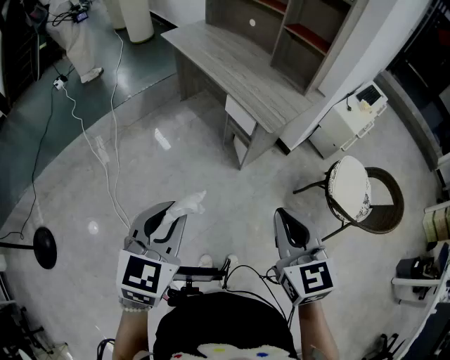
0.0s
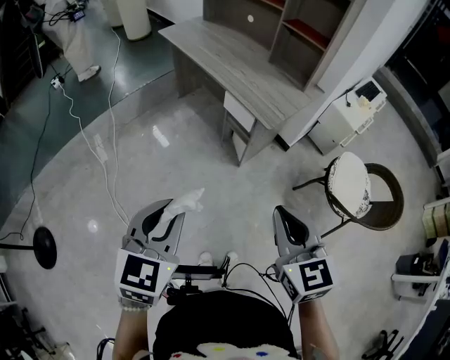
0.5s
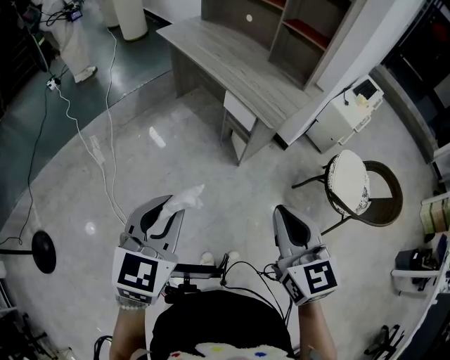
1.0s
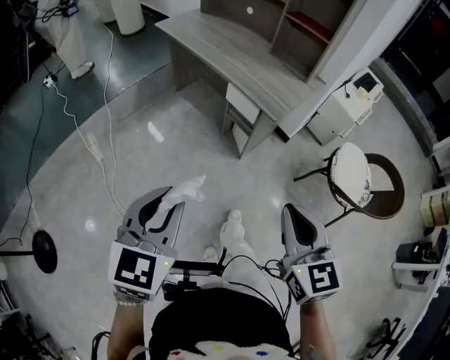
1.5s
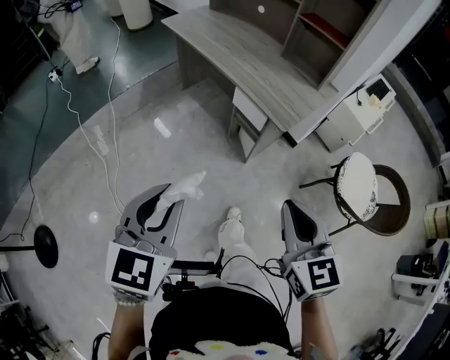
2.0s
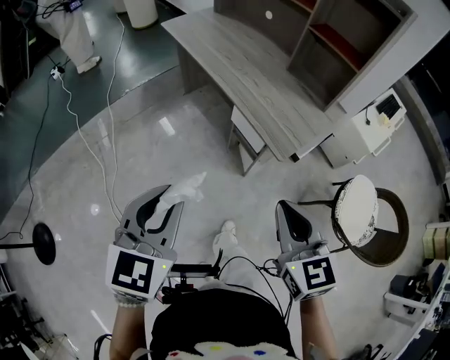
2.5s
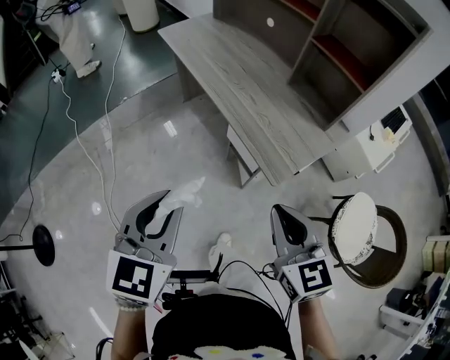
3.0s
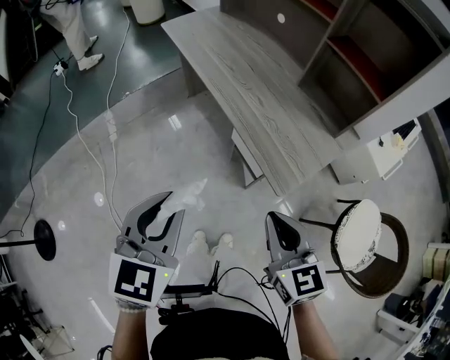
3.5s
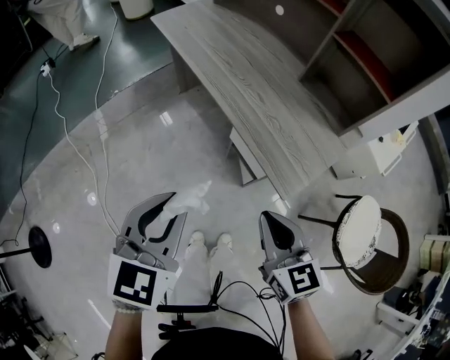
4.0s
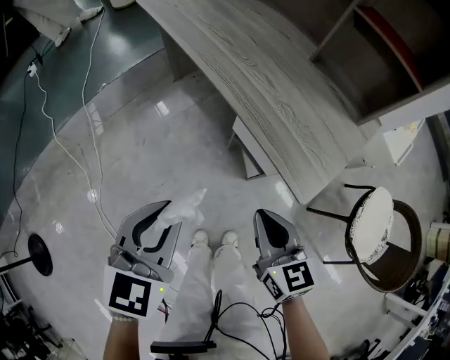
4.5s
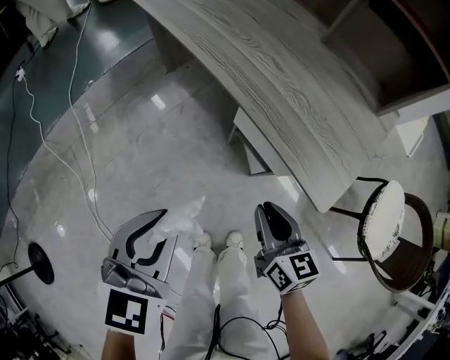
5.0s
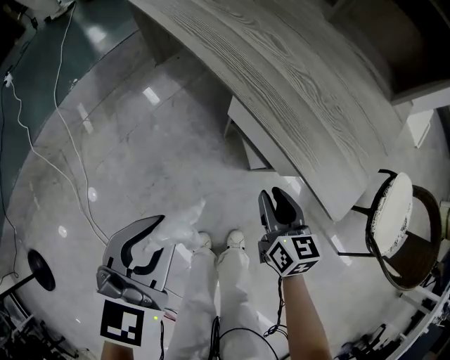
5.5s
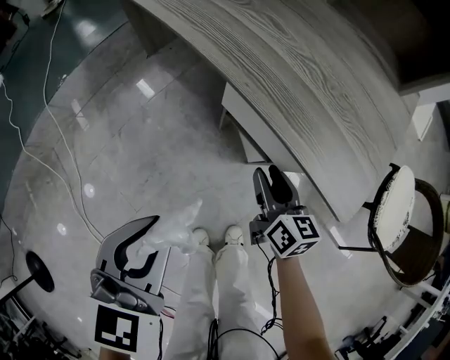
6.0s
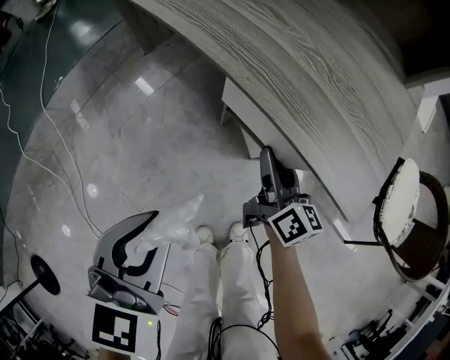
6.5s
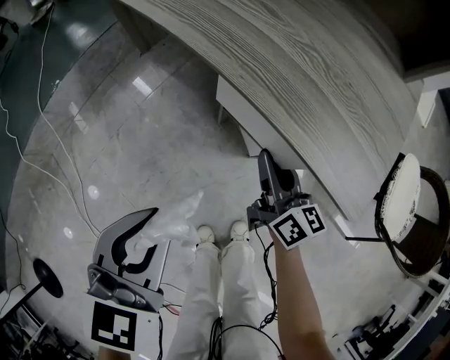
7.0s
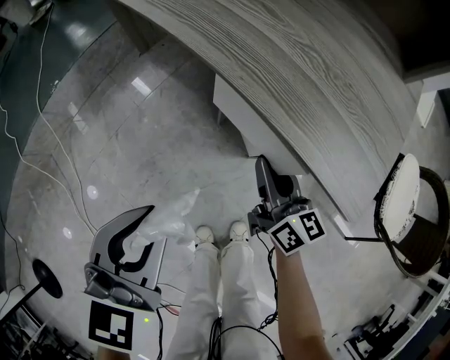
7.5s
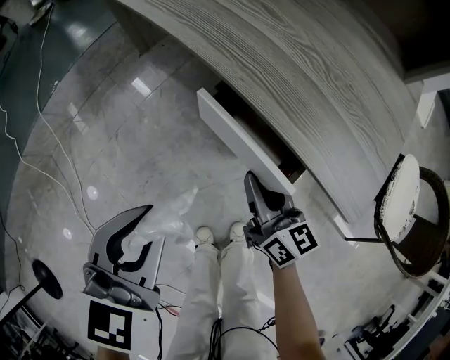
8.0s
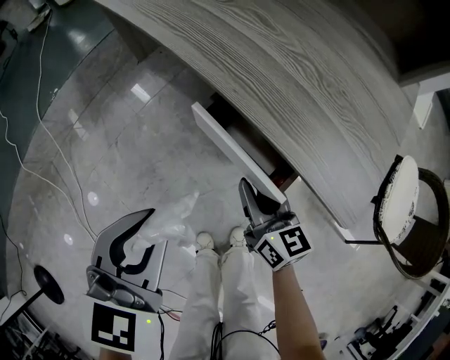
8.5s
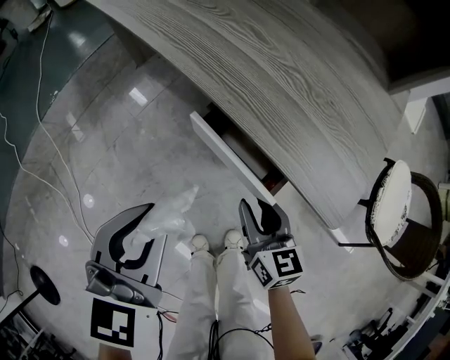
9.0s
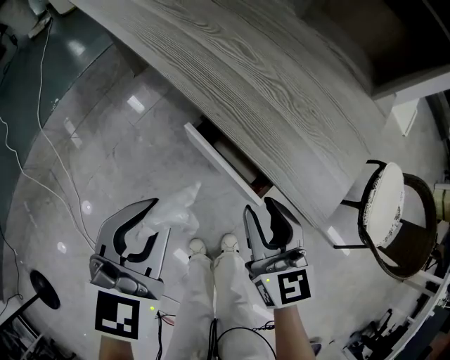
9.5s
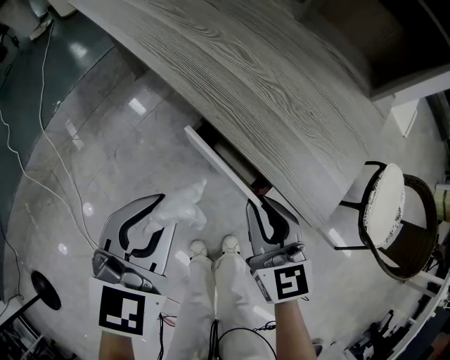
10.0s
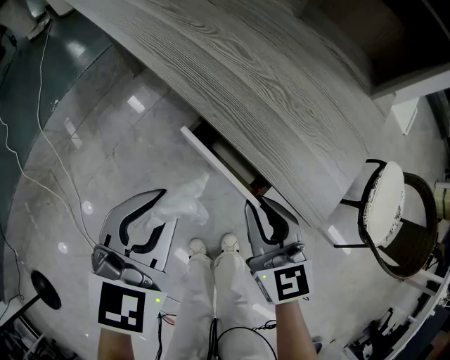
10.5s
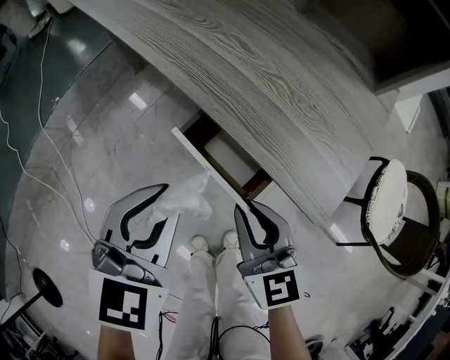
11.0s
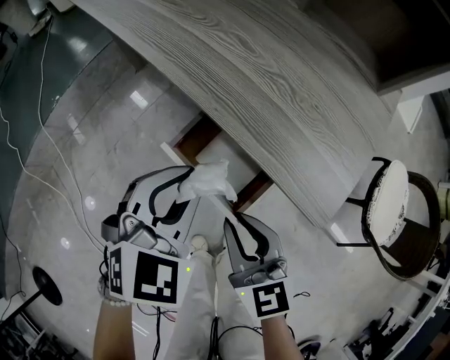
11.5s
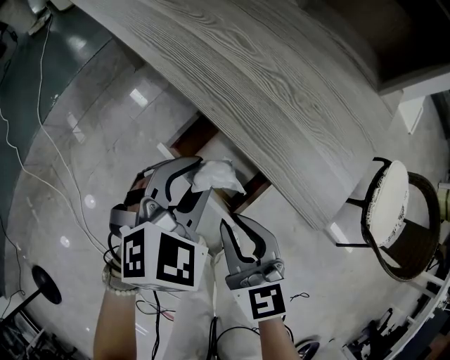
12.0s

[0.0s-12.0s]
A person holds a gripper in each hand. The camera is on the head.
0.0s to 2.0s: The grippers both shift forward by roughly 5 cm.
2.0s to 4.0s: The left gripper heads forward, covering about 25 cm. Meanwhile the right gripper is displaced forward and downward by roughly 30 cm.
4.0s to 6.0s: The two grippers go some 30 cm downward. The right gripper swivels some 30 degrees, and opens its fingers.
6.0s to 8.0s: The right gripper closes.
8.0s to 10.0s: The right gripper moves upward, roughly 10 cm, and swivels approximately 30 degrees. Meanwhile the left gripper is displaced upward by roughly 5 cm.
10.0s to 12.0s: The left gripper heads downward and to the right, covering roughly 10 cm, and changes its angle by roughly 20 degrees; the right gripper changes place by some 5 cm.

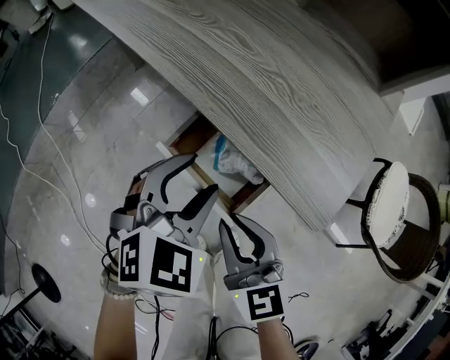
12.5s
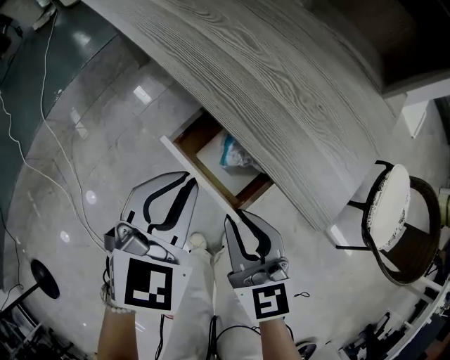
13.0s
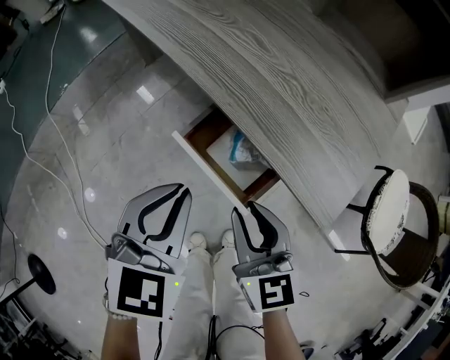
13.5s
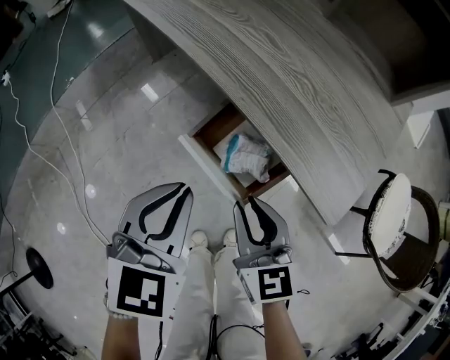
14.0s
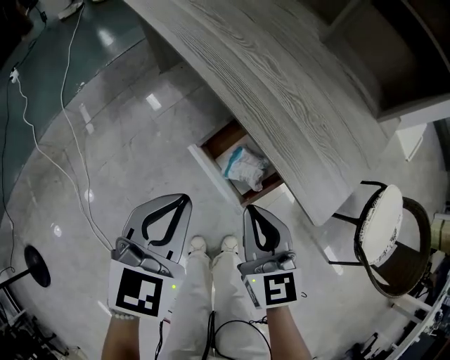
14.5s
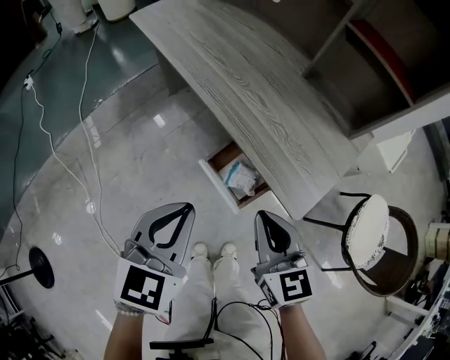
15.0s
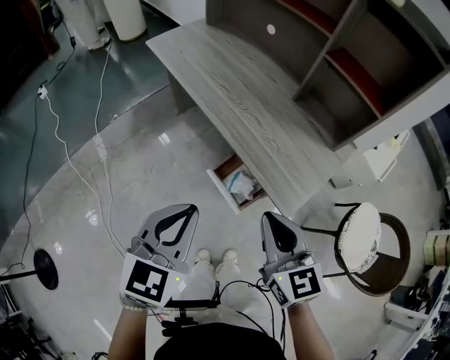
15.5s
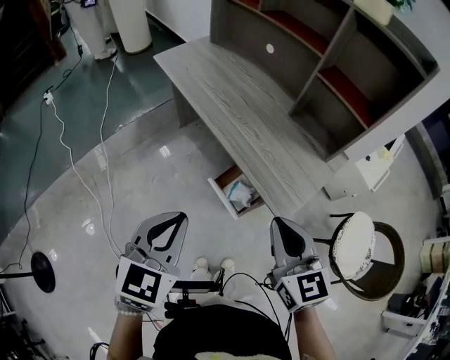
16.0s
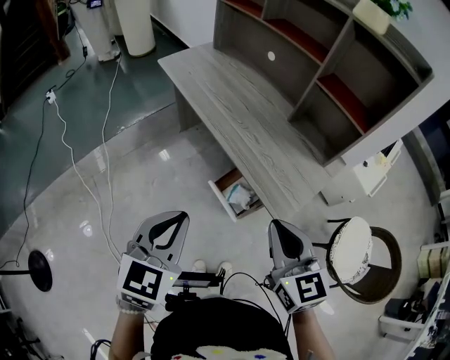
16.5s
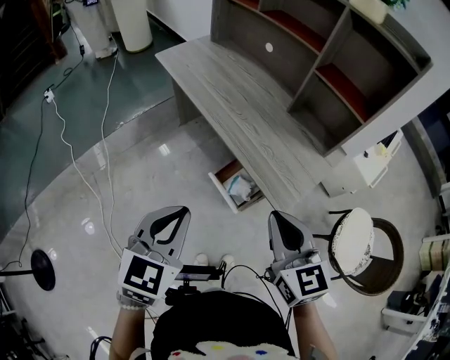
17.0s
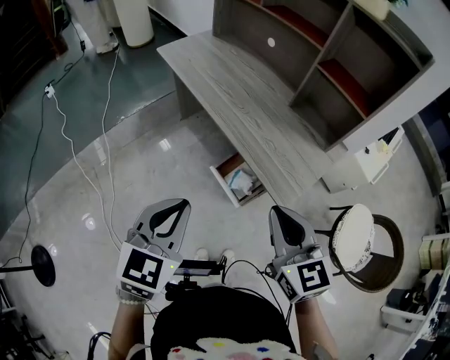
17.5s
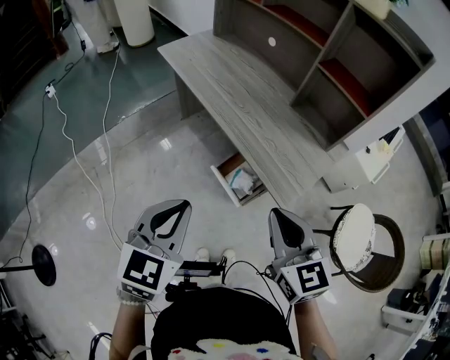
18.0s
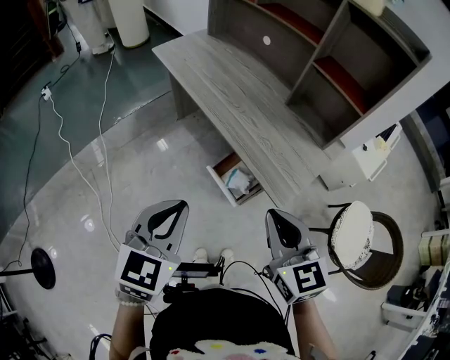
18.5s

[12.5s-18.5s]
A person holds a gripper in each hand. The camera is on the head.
12.5s to 14.5s: The left gripper is displaced upward, to the left and backward by about 15 cm, swivels roughly 30 degrees, and closes its fingers.
14.5s to 16.5s: Both grippers move upward, about 30 cm.
16.5s to 18.5s: The grippers stay close to where they were, moving slightly.

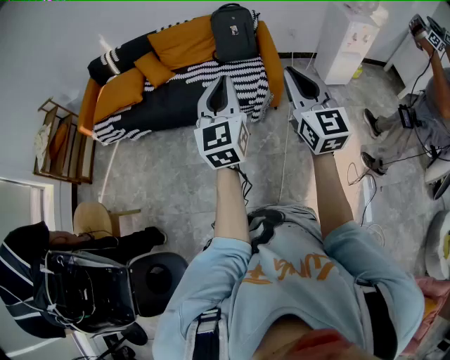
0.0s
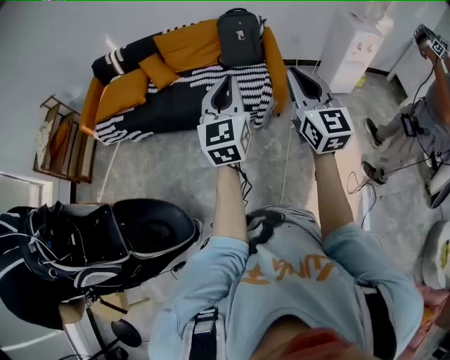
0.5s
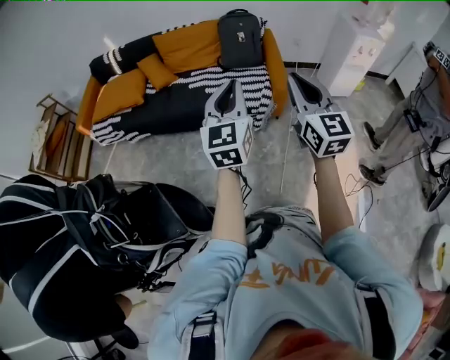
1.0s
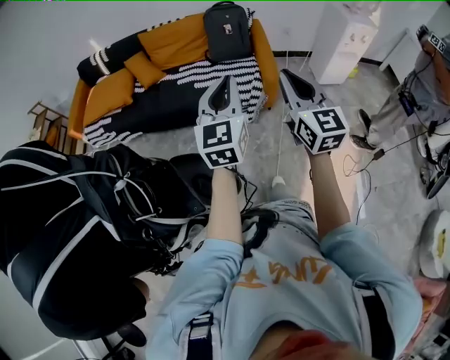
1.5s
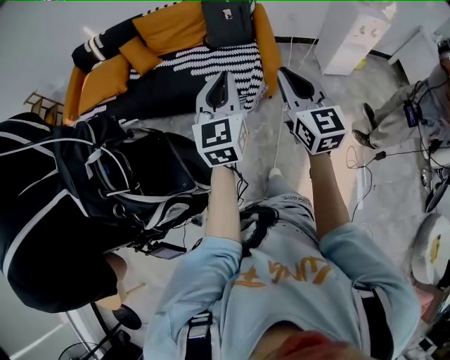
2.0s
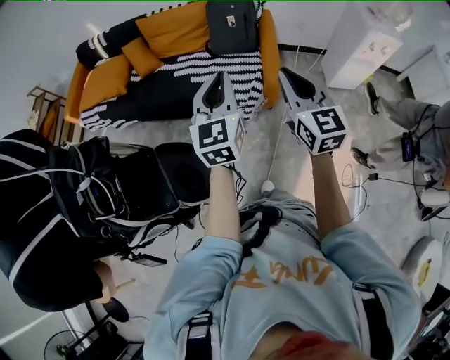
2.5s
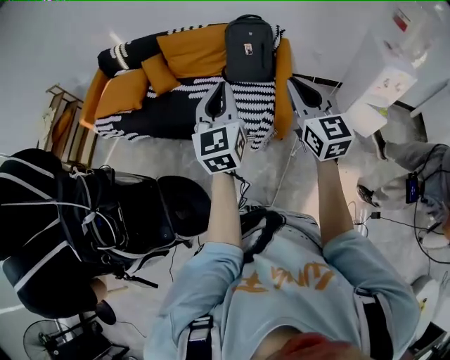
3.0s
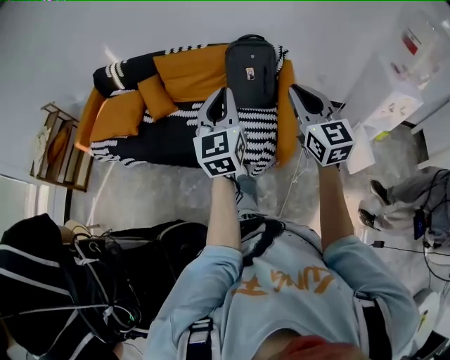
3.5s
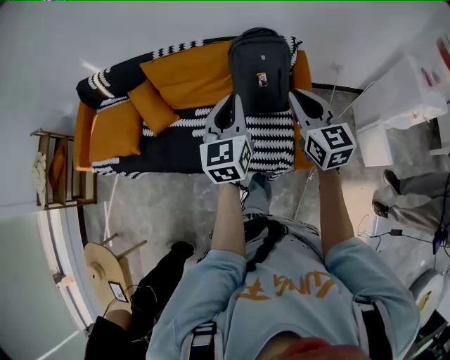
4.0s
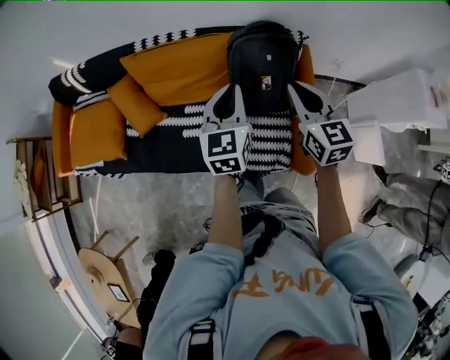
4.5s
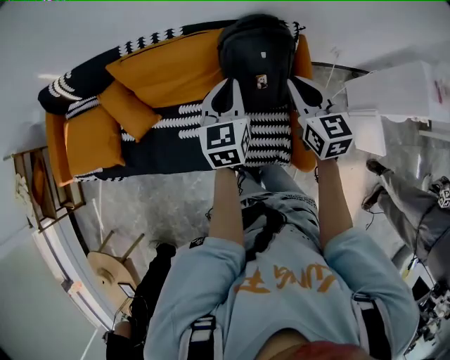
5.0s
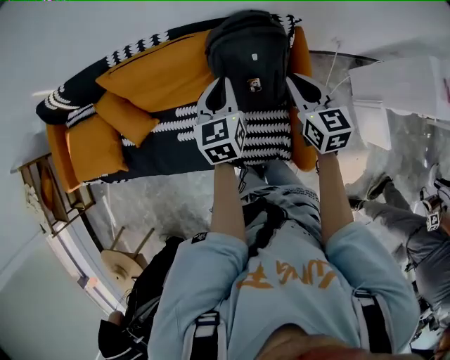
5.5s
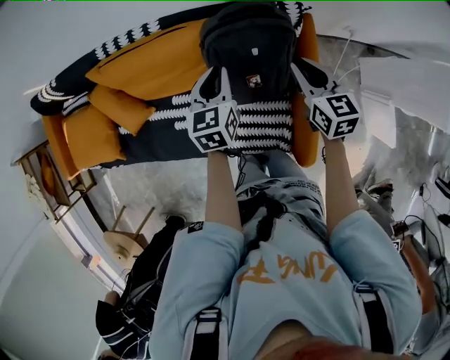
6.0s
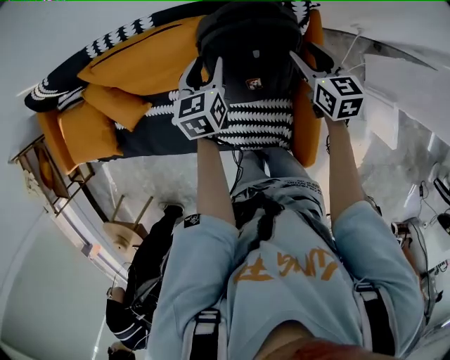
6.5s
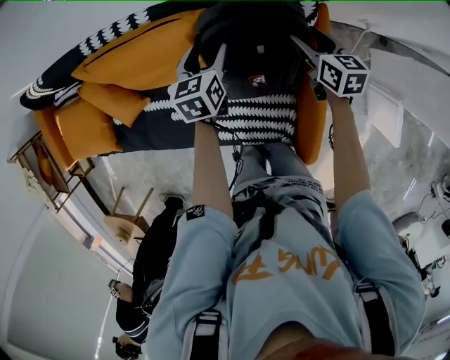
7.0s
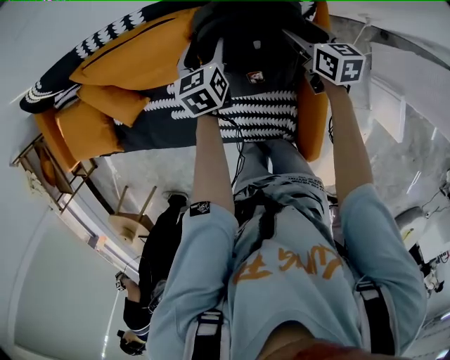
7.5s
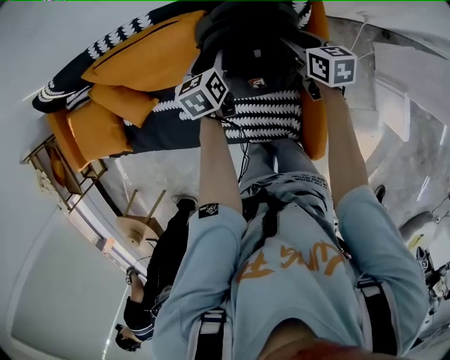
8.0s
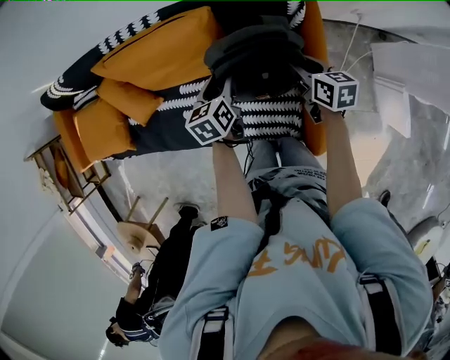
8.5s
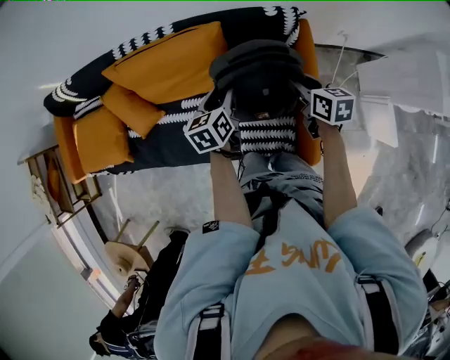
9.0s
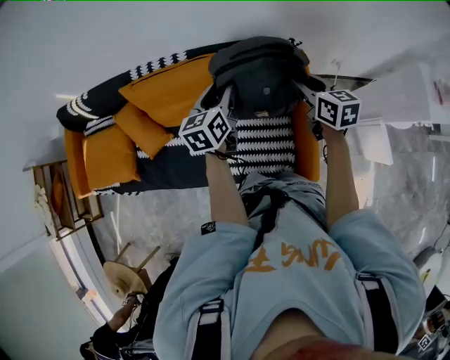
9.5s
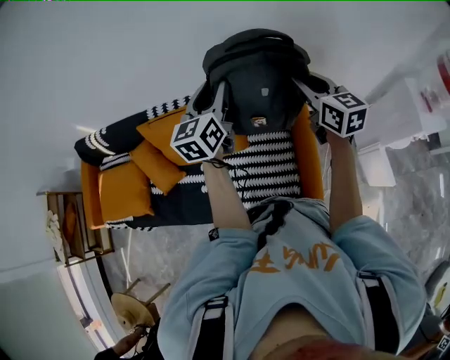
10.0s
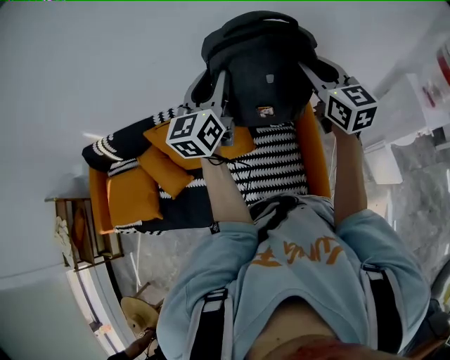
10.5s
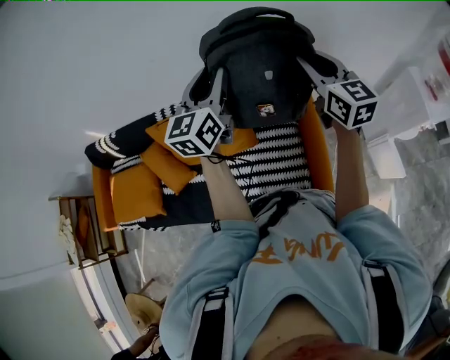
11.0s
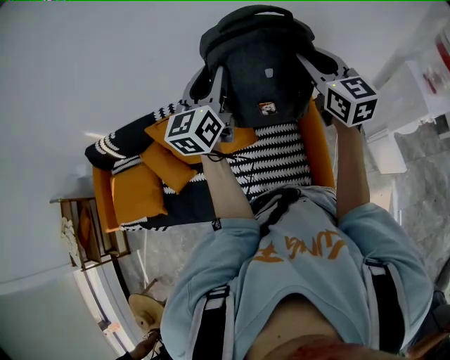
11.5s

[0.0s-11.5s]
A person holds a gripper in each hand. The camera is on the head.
0.0s to 2.0s: The left gripper moves forward, downward and to the right, about 15 cm; the right gripper is displaced forward and downward by approximately 10 cm.
2.0s to 4.0s: The two grippers travel together, forward, about 50 cm.
4.0s to 6.0s: The two grippers go about 35 cm forward and downward. The left gripper rotates some 30 degrees. The right gripper swivels about 20 degrees.
6.0s to 7.5s: The grippers both shift downward and forward by roughly 15 cm. The right gripper opens its fingers. The left gripper opens its fingers.
7.5s to 9.5s: The grippers both shift upward and backward by roughly 25 cm. The right gripper closes, while the left gripper swivels approximately 20 degrees, and closes.
9.5s to 11.5s: The two grippers go roughly 20 cm upward. The left gripper turns by roughly 30 degrees. Meanwhile the right gripper rotates roughly 30 degrees.
